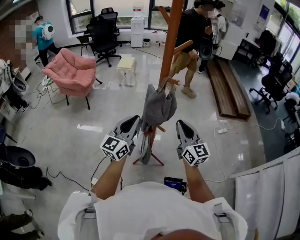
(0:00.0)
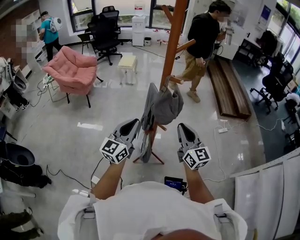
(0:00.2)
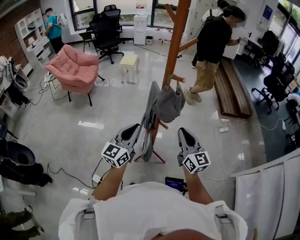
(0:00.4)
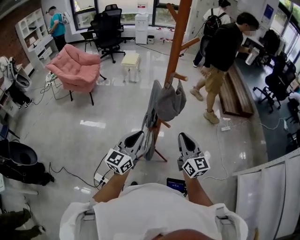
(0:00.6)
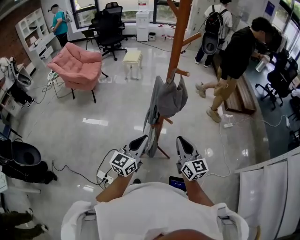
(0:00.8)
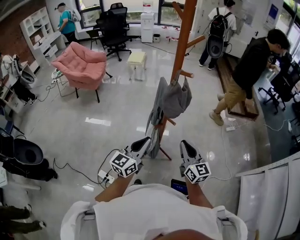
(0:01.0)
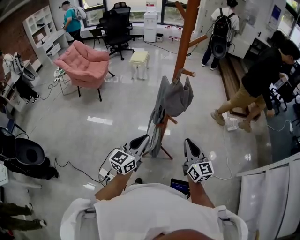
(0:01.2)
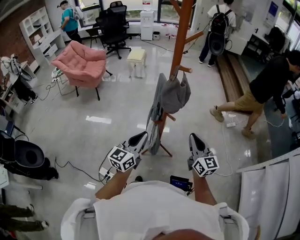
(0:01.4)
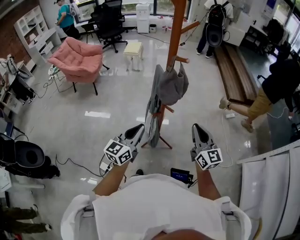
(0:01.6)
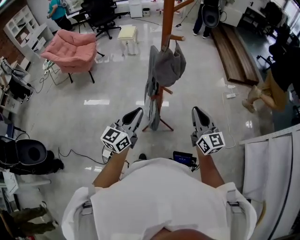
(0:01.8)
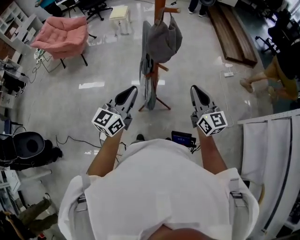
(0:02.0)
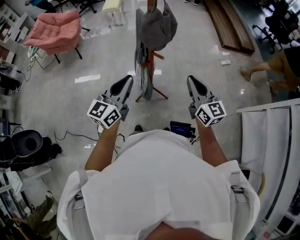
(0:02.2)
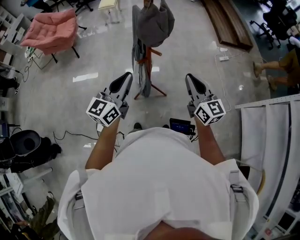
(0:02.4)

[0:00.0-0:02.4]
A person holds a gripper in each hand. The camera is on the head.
0:00.0 to 0:01.2: The two grippers go approximately 15 cm backward and downward.
0:01.2 to 0:02.4: The right gripper is displaced to the right by about 5 cm.

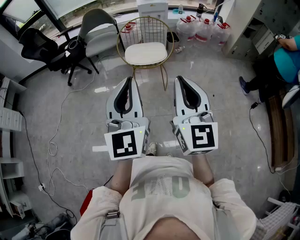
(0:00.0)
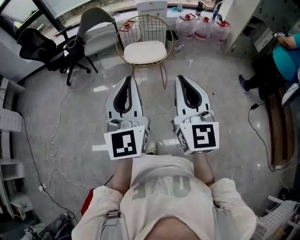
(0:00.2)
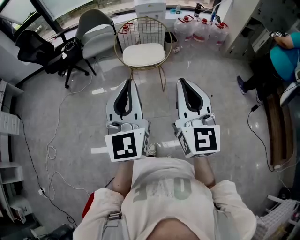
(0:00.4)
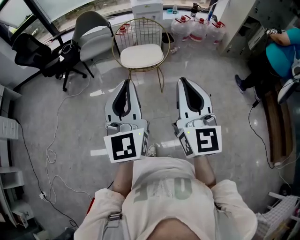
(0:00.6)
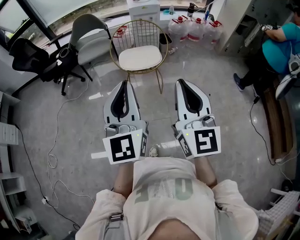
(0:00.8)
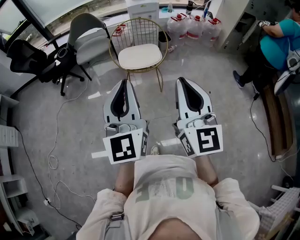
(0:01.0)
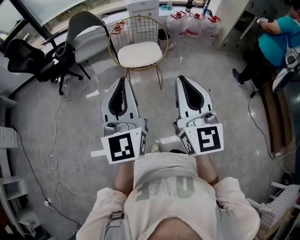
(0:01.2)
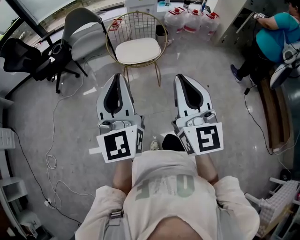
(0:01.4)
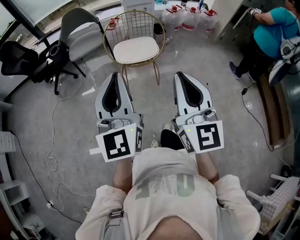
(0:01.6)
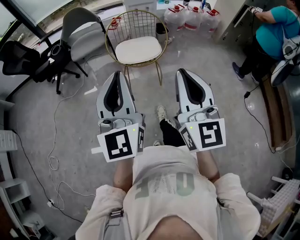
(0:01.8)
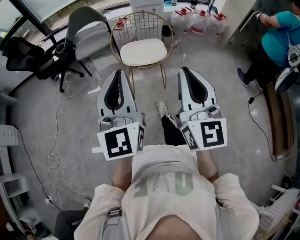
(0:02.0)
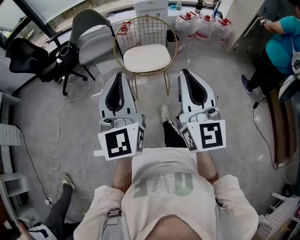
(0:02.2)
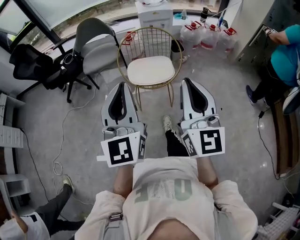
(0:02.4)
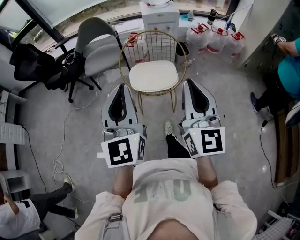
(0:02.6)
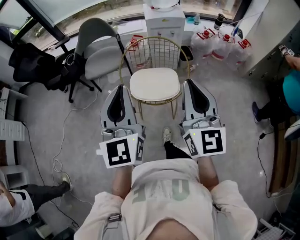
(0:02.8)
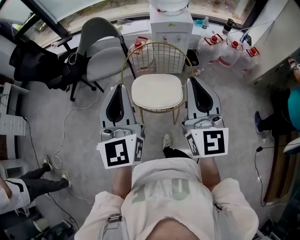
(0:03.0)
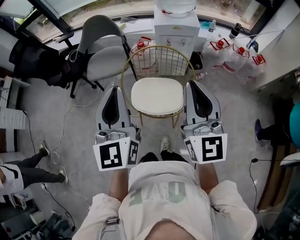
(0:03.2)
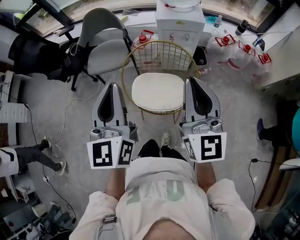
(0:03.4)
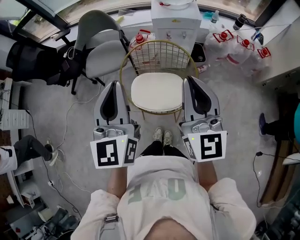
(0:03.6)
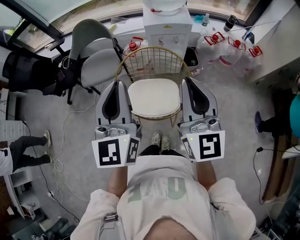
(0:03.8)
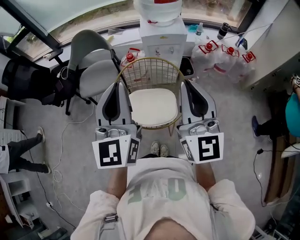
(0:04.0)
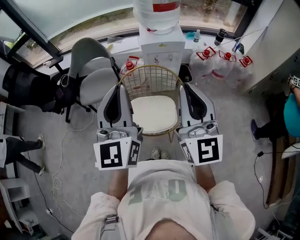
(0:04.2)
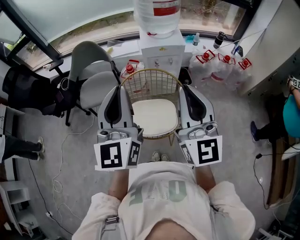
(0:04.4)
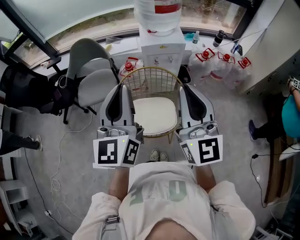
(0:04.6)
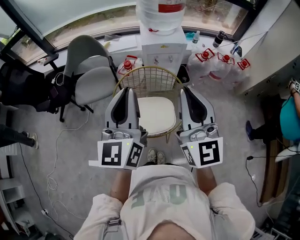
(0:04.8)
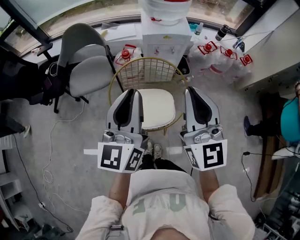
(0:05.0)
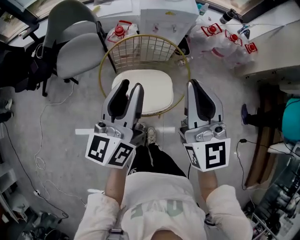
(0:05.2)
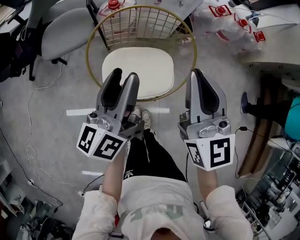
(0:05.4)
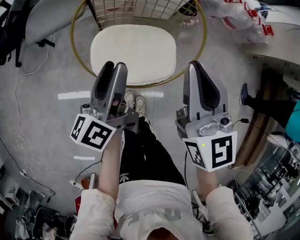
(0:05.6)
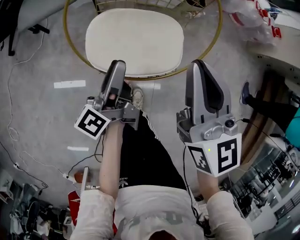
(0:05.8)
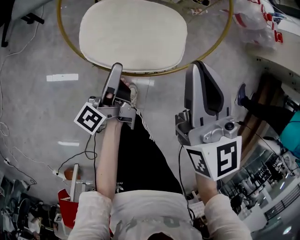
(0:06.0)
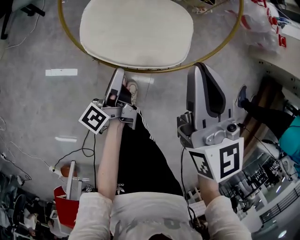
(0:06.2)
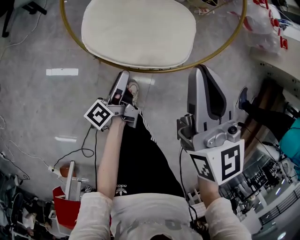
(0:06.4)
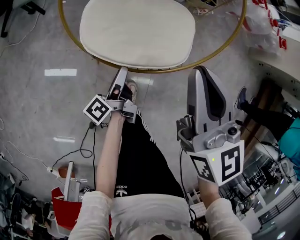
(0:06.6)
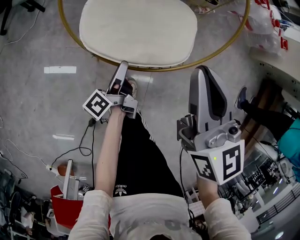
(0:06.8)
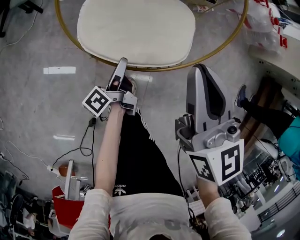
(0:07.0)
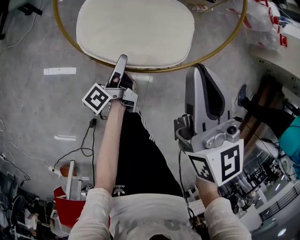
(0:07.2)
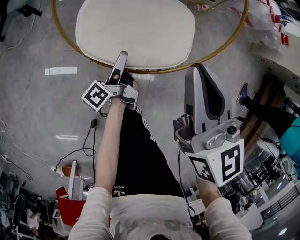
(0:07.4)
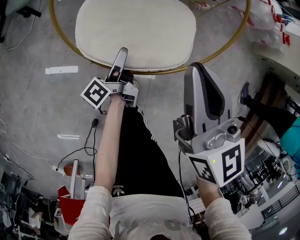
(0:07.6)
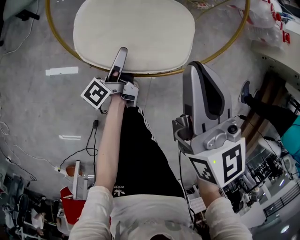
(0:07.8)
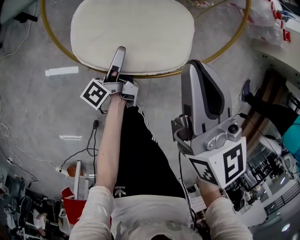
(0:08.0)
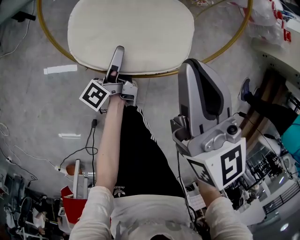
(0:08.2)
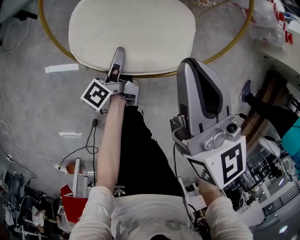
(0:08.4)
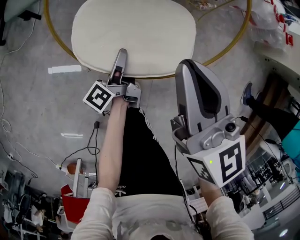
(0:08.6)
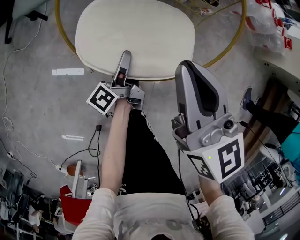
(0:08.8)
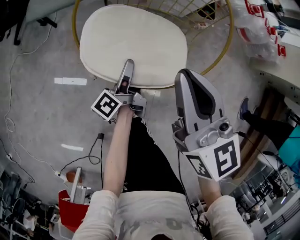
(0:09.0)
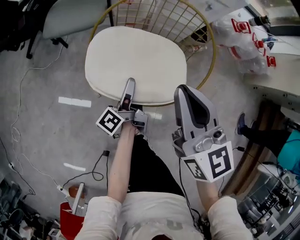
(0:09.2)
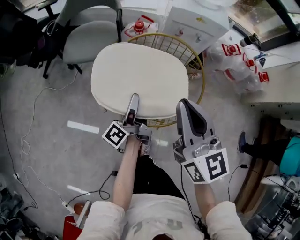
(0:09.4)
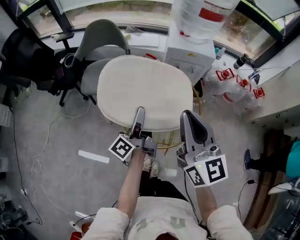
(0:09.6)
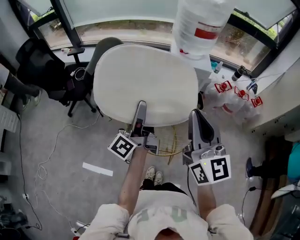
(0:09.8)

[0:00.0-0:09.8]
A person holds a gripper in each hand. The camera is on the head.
0:00.0 to 0:01.4: The grippers both shift to the left and forward by approximately 10 cm.
0:01.4 to 0:02.8: The two grippers go about 30 cm forward.
0:02.8 to 0:04.2: The grippers both shift forward by approximately 20 cm.
0:04.2 to 0:05.6: Both grippers travel together downward, approximately 35 cm. The right gripper turns by approximately 30 degrees, while the left gripper twists approximately 50 degrees counterclockwise, seen from behind, and opens its fingers.
0:05.6 to 0:07.0: The left gripper travels downward by approximately 30 cm, and twists roughly 40 degrees counterclockwise, seen from behind, while the right gripper goes approximately 15 cm downward and backward.
0:07.0 to 0:08.4: The left gripper heads forward, covering about 5 cm, and closes its fingers.
0:08.4 to 0:09.8: Both grippers move upward, some 50 cm. The left gripper tilts its fingers approximately 40 degrees upward. The right gripper tips its fingers upward by some 30 degrees.

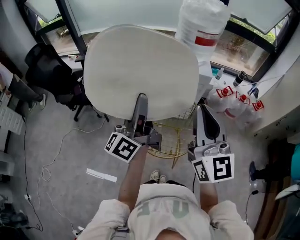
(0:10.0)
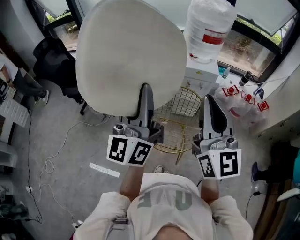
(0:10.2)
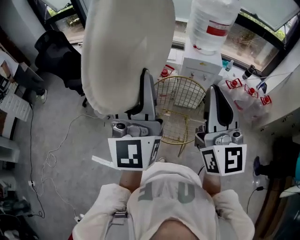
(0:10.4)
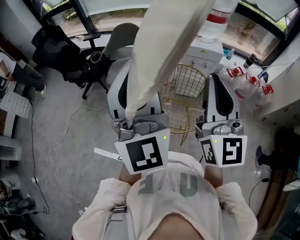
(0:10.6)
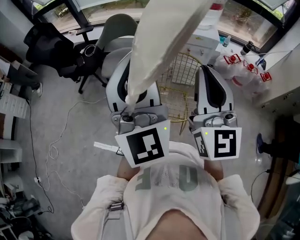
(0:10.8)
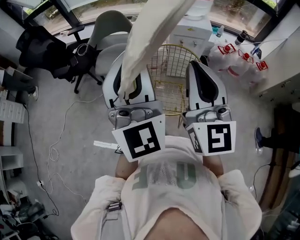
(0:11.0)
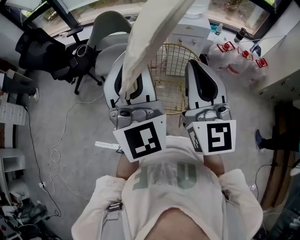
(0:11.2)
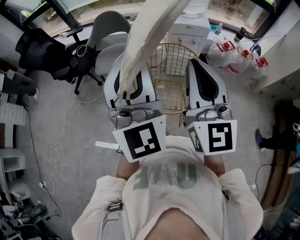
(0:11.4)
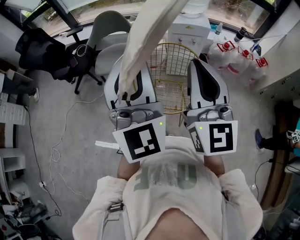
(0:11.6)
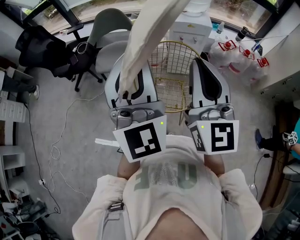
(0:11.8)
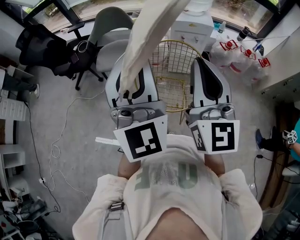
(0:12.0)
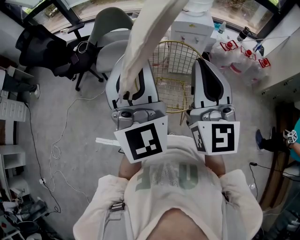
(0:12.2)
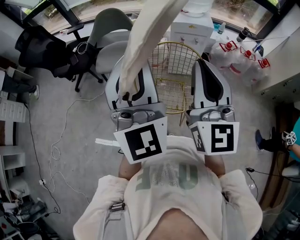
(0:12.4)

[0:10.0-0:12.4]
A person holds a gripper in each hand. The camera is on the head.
0:10.0 to 0:11.2: The left gripper travels backward and upward by approximately 15 cm, and twists about 70 degrees clockwise, seen from behind. The right gripper heads backward, covering some 5 cm.
0:11.2 to 0:12.4: The grippers stay close to where they were, moving slightly.

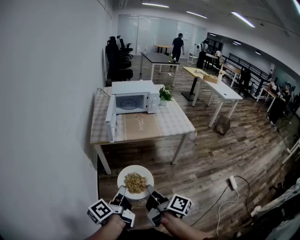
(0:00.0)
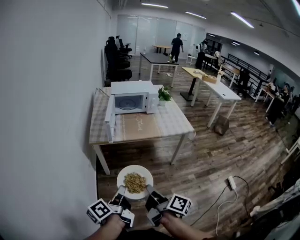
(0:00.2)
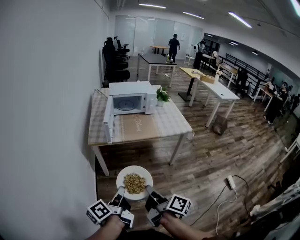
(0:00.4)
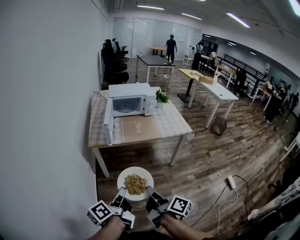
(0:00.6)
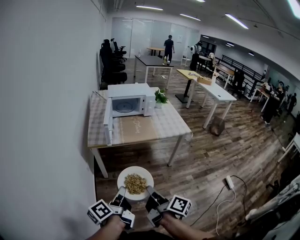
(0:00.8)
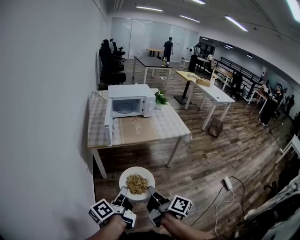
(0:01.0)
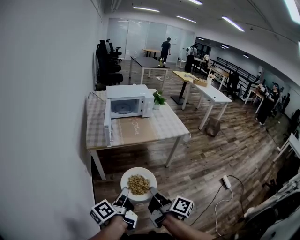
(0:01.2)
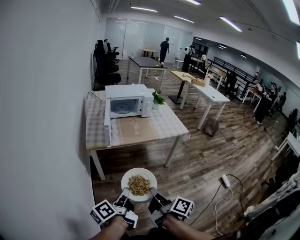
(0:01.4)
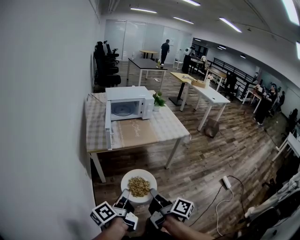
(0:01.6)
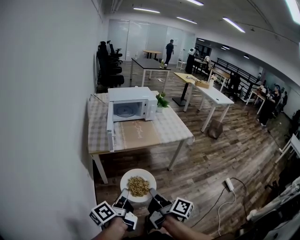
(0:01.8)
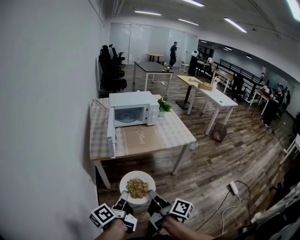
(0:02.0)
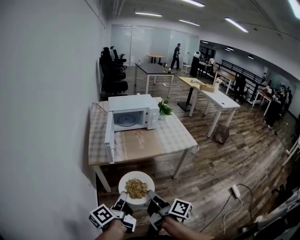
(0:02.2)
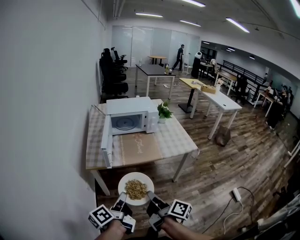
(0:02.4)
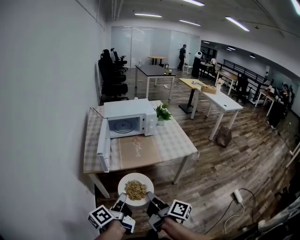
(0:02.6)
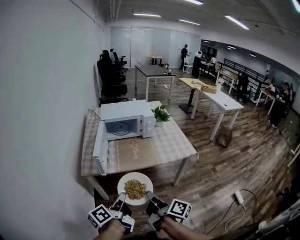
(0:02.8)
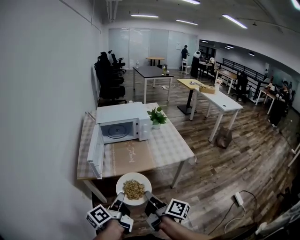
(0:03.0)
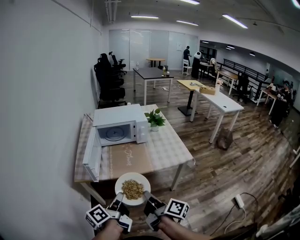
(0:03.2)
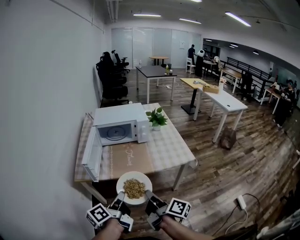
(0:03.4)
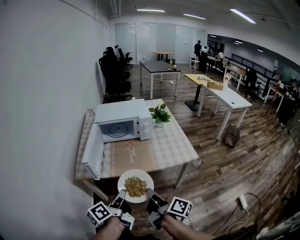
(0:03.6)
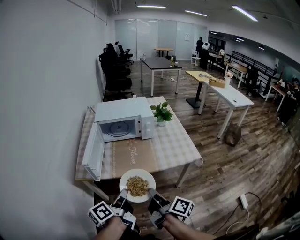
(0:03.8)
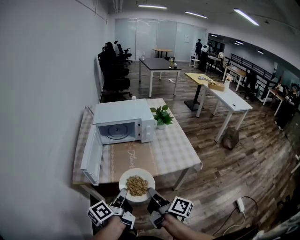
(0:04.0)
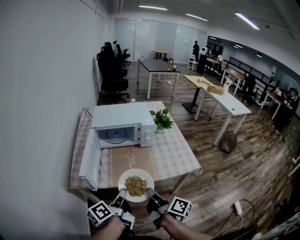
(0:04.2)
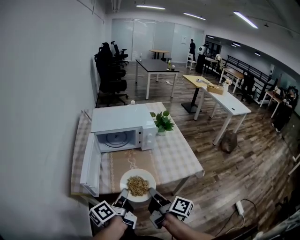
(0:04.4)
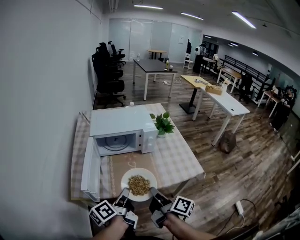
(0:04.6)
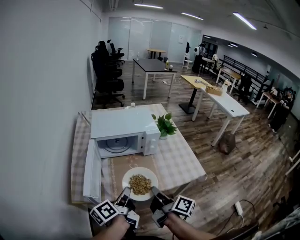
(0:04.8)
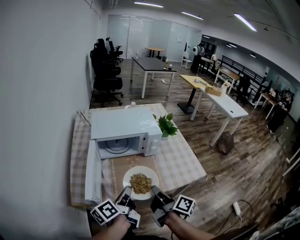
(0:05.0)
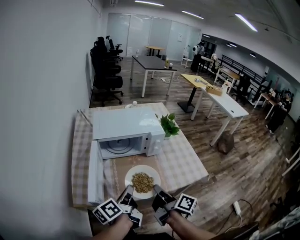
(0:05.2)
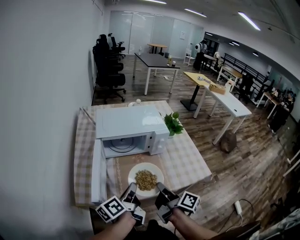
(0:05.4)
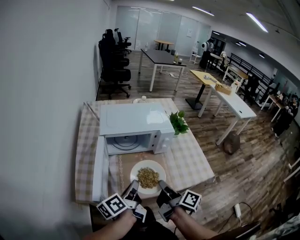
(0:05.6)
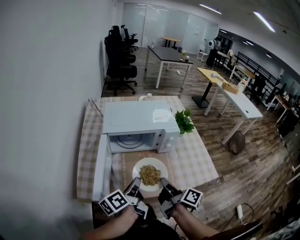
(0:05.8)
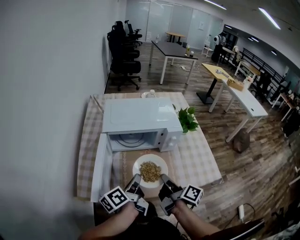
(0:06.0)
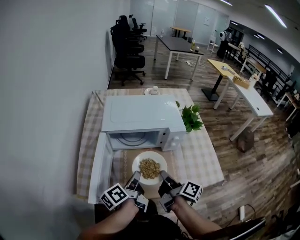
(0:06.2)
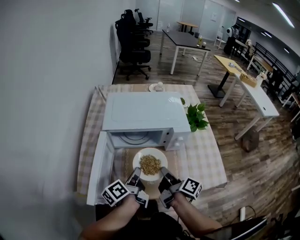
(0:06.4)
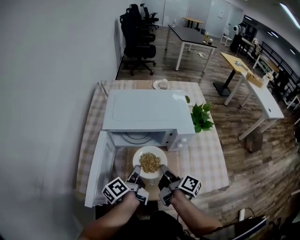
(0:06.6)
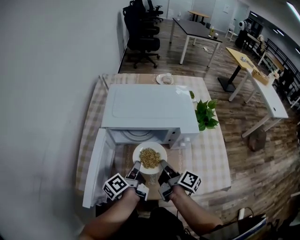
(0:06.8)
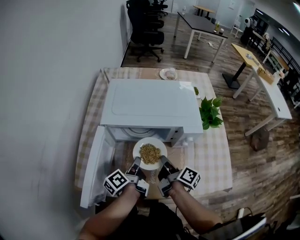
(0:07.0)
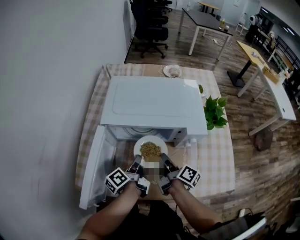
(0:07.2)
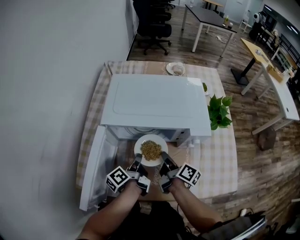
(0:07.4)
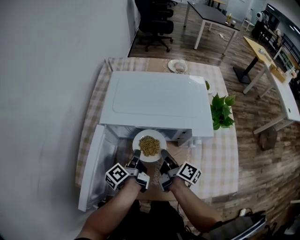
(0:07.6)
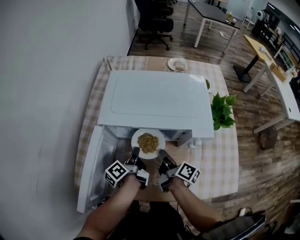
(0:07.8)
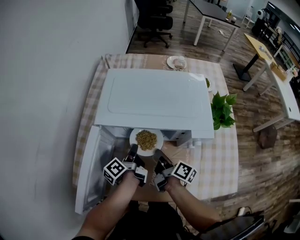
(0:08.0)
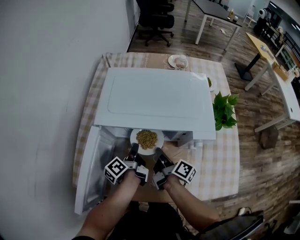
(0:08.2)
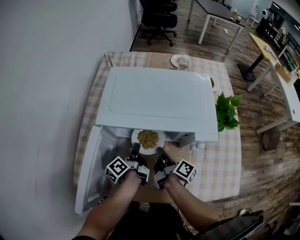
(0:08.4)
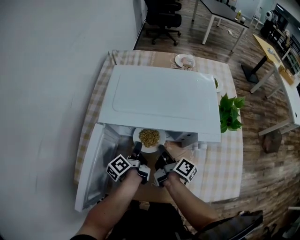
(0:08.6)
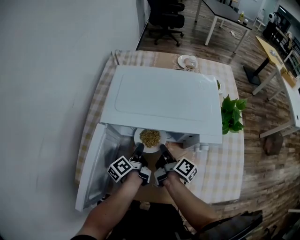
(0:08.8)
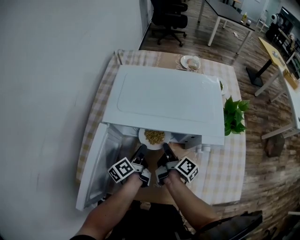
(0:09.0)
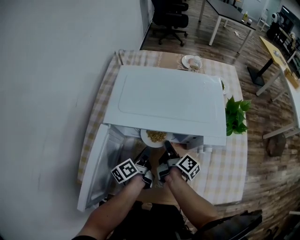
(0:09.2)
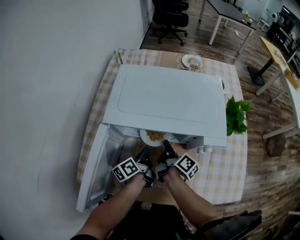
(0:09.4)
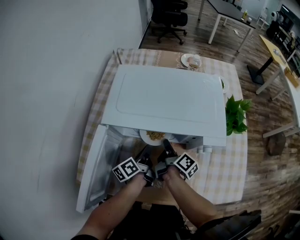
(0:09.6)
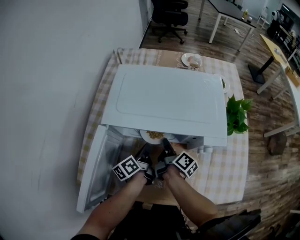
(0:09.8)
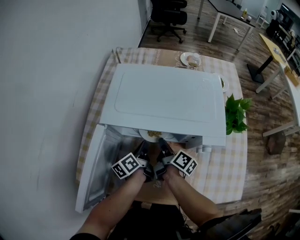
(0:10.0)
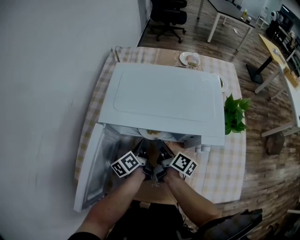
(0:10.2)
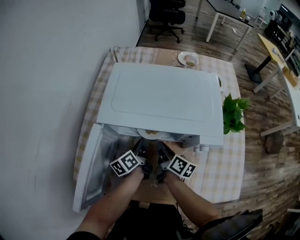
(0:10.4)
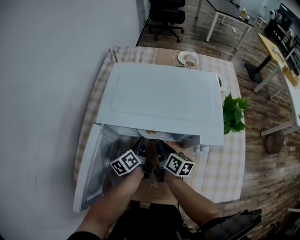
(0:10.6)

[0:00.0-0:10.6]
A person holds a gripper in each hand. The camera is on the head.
0:00.0 to 0:01.6: The left gripper ends up some 5 cm from where it was.
0:01.6 to 0:03.0: Both grippers move forward and to the right, approximately 25 cm.
0:03.0 to 0:04.6: The grippers both shift forward by roughly 20 cm.
0:04.6 to 0:06.0: The two grippers go roughly 15 cm forward.
0:06.0 to 0:07.6: The two grippers go approximately 25 cm forward and downward. The left gripper changes its angle by roughly 20 degrees.
0:07.6 to 0:09.0: The right gripper changes place by about 5 cm.
0:09.0 to 0:10.6: The right gripper turns by roughly 30 degrees, and opens and closes again.
